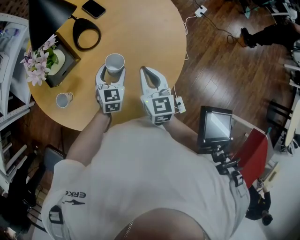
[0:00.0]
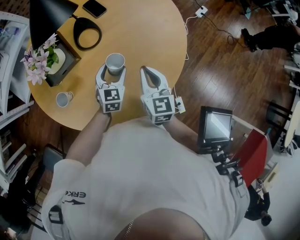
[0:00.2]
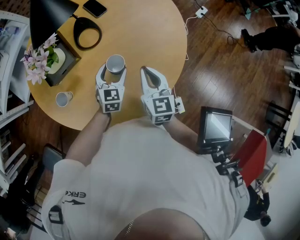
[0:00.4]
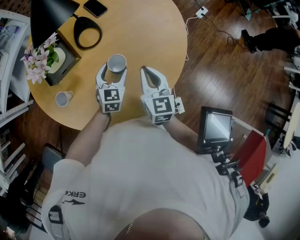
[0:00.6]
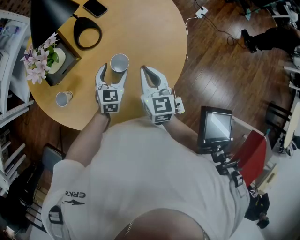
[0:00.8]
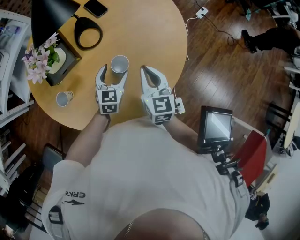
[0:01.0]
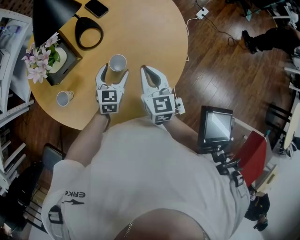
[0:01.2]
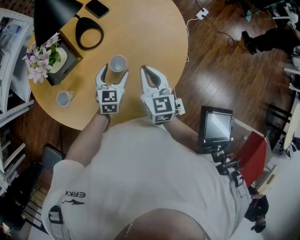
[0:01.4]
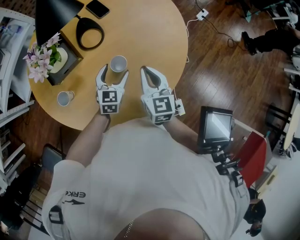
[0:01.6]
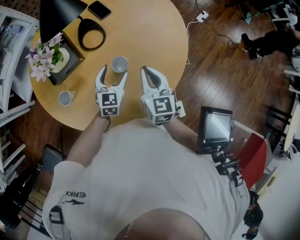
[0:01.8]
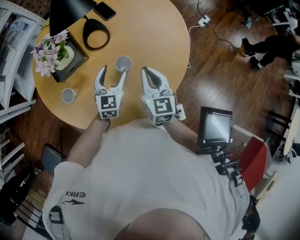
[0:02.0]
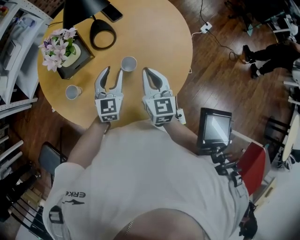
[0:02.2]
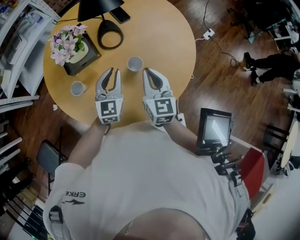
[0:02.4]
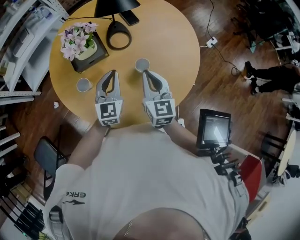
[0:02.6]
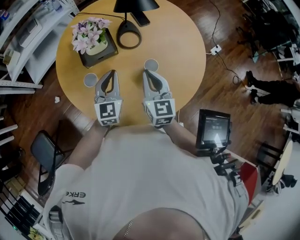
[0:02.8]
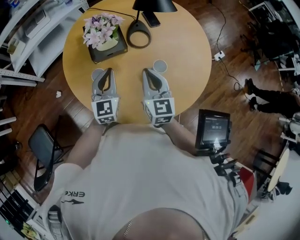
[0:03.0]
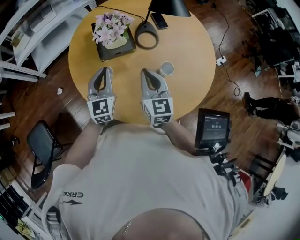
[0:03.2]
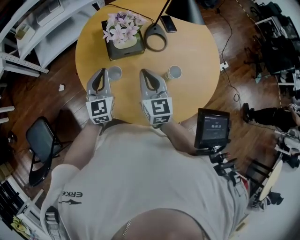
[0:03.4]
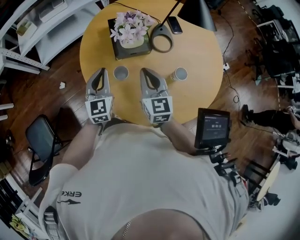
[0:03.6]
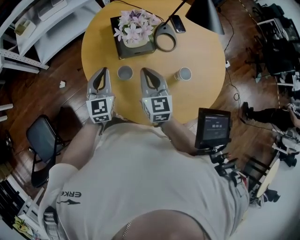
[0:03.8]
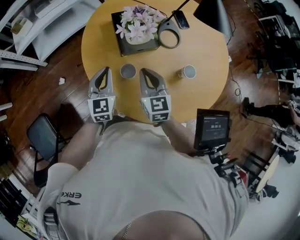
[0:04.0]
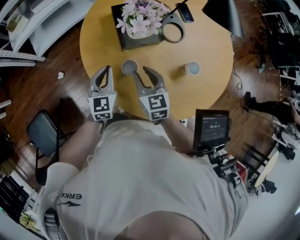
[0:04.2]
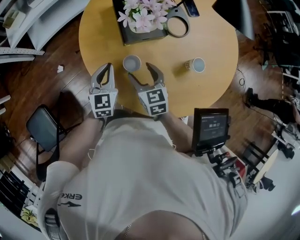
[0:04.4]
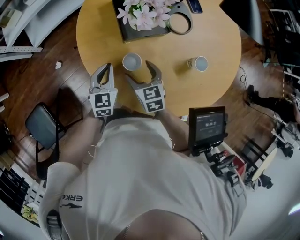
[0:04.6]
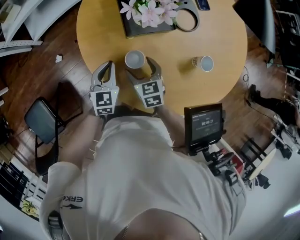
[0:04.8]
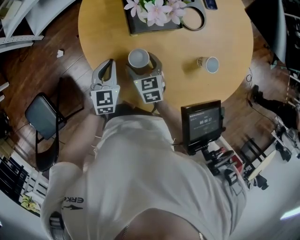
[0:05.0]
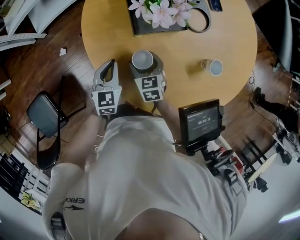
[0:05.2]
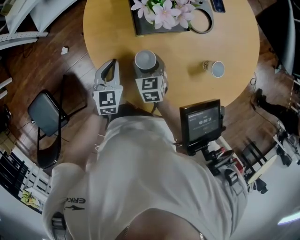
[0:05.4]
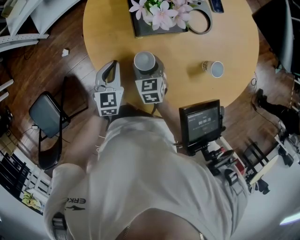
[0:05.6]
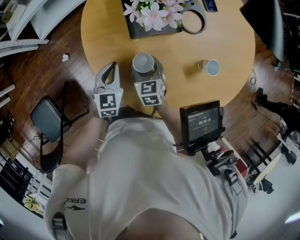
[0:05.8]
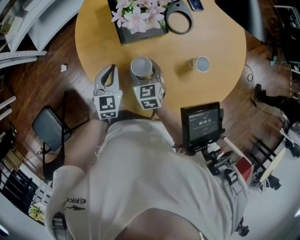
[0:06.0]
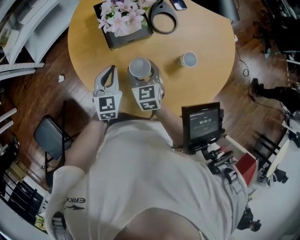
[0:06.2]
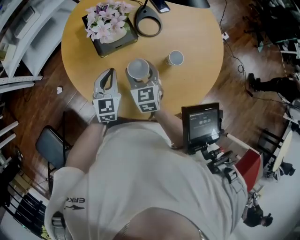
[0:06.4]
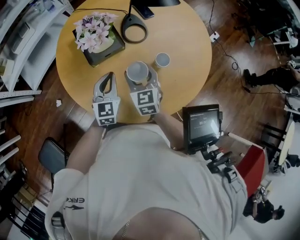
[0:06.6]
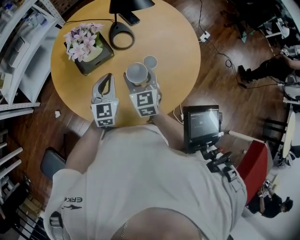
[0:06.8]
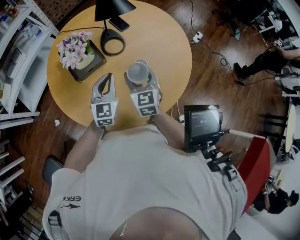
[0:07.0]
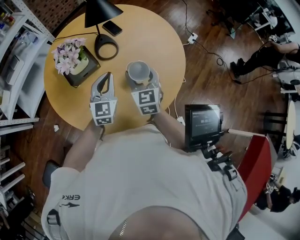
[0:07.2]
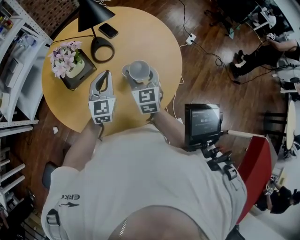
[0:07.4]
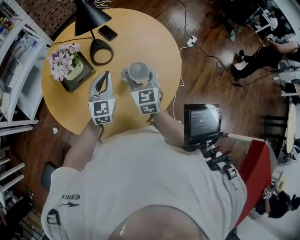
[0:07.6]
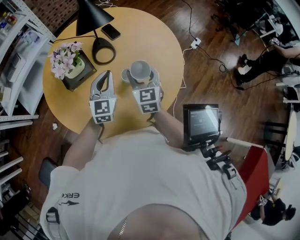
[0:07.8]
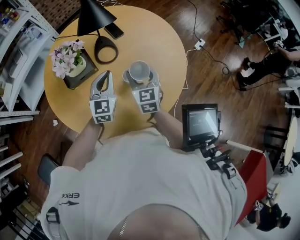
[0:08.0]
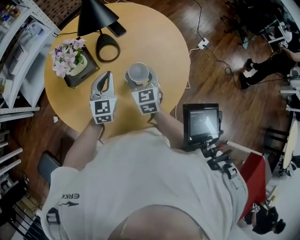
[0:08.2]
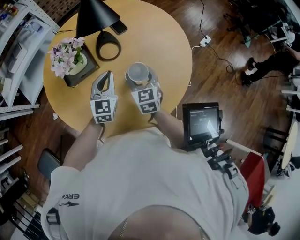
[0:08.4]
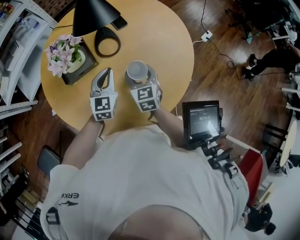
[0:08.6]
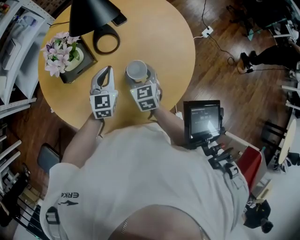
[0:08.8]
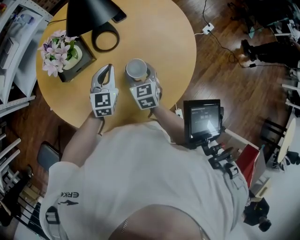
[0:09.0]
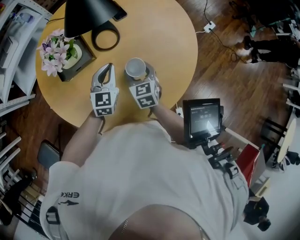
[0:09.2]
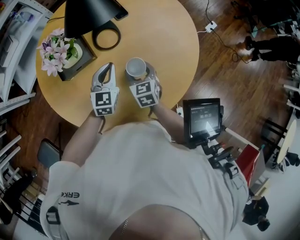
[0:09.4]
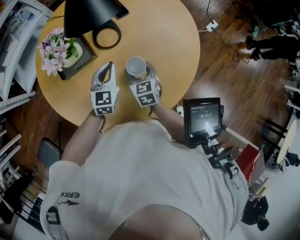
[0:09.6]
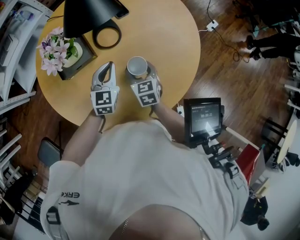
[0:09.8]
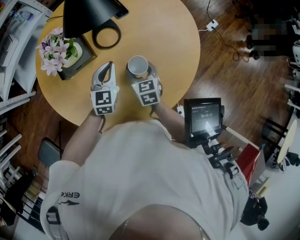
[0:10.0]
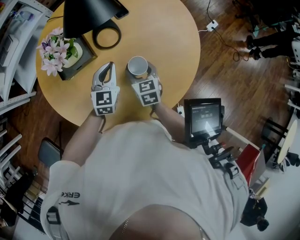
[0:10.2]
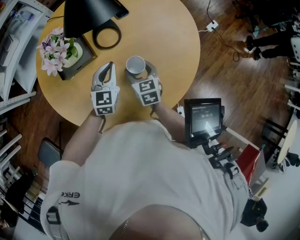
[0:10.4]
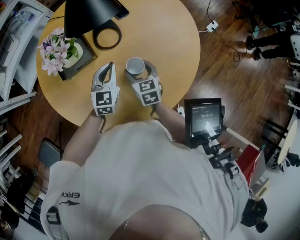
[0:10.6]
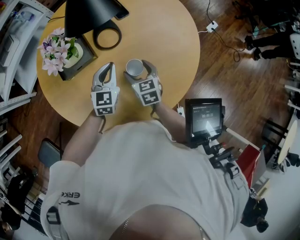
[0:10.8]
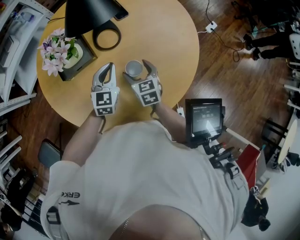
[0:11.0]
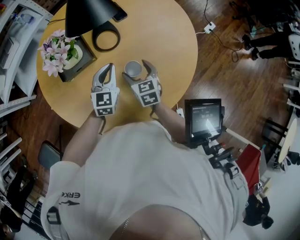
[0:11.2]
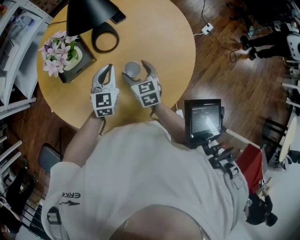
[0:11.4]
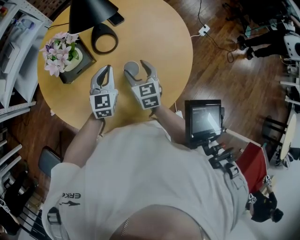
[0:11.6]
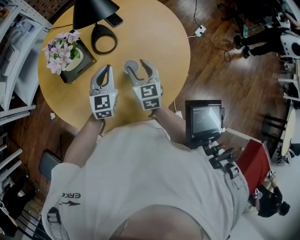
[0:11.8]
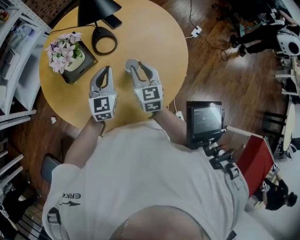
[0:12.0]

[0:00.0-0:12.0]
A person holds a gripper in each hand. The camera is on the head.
0.0 to 1.6 s: The grippers make only small movements.
1.6 to 3.0 s: Both grippers move to the left and upward, roughly 20 cm. The left gripper changes its angle by approximately 30 degrees, and closes its fingers.
3.0 to 4.4 s: The two grippers go some 20 cm to the left and downward. The right gripper swivels roughly 30 degrees, and opens its fingers.
4.4 to 6.0 s: The right gripper is displaced downward by some 5 cm.
6.0 to 7.6 s: Both grippers travel together to the right and upward, some 35 cm. The right gripper rotates approximately 30 degrees. The left gripper turns by some 30 degrees.
7.6 to 9.0 s: The two grippers go approximately 10 cm downward. The right gripper turns by about 20 degrees.
9.0 to 10.4 s: The grippers stay close to where they were, moving slightly.
10.4 to 12.0 s: The left gripper travels upward by approximately 5 cm. Meanwhile the right gripper goes about 10 cm upward, turns by approximately 20 degrees, and closes its fingers.

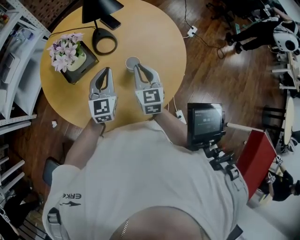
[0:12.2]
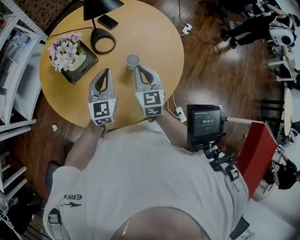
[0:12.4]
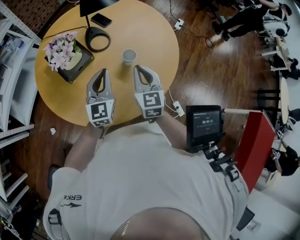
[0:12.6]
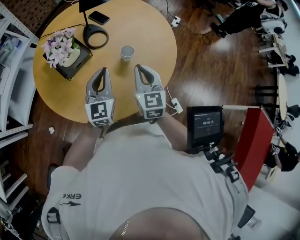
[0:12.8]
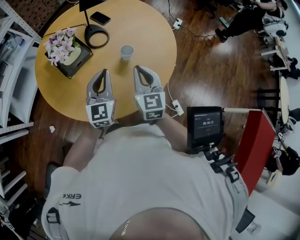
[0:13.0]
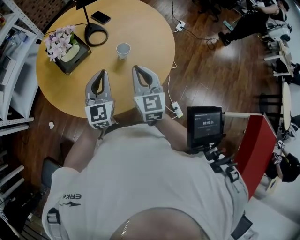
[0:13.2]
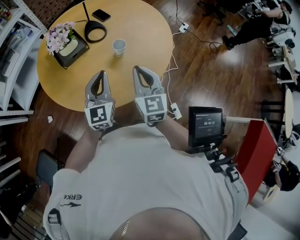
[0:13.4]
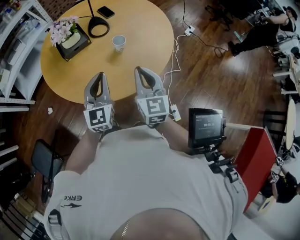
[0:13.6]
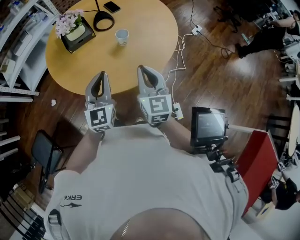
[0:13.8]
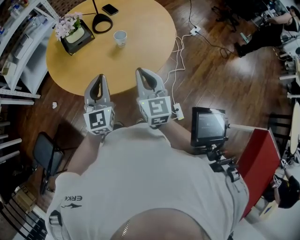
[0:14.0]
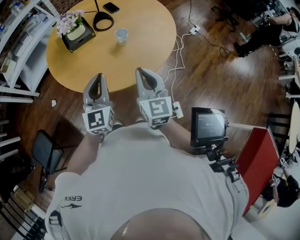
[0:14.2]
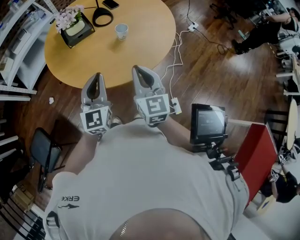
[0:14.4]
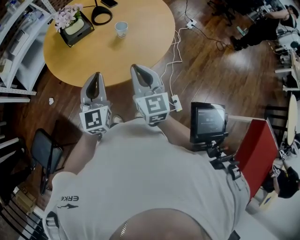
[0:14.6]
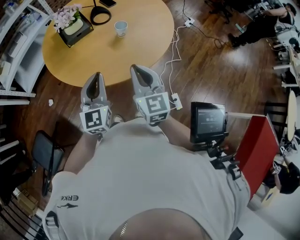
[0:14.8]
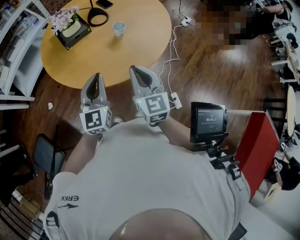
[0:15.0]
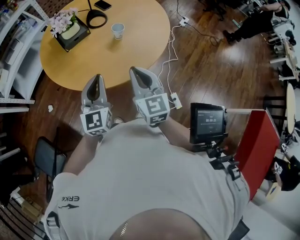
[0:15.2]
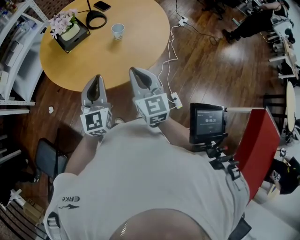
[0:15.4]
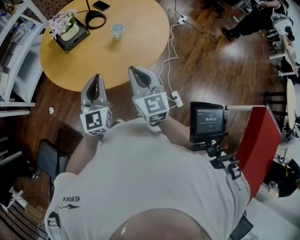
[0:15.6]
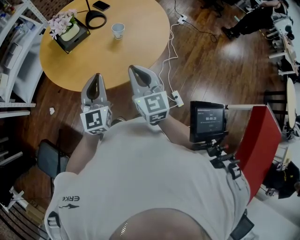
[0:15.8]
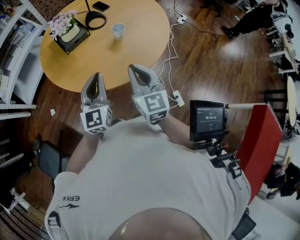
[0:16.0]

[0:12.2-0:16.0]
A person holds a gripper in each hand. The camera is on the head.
12.2 to 13.4 s: The right gripper is displaced backward and upward by some 15 cm. The left gripper heads backward, covering approximately 15 cm.
13.4 to 14.8 s: Both grippers travel together backward, about 15 cm.
14.8 to 16.0 s: The grippers make only small movements.

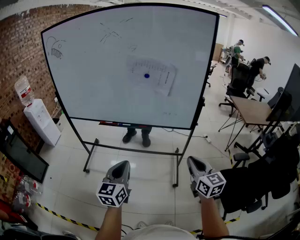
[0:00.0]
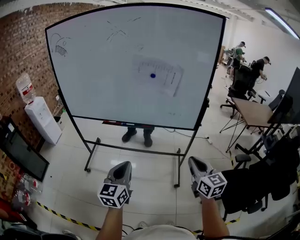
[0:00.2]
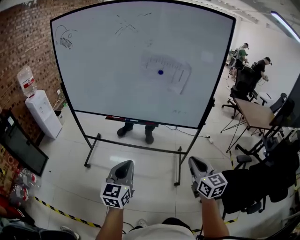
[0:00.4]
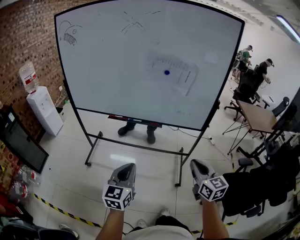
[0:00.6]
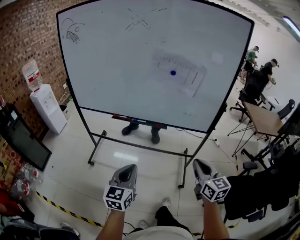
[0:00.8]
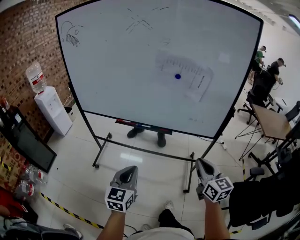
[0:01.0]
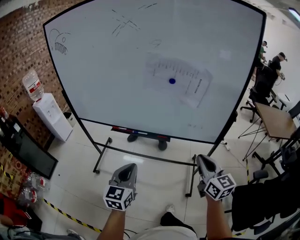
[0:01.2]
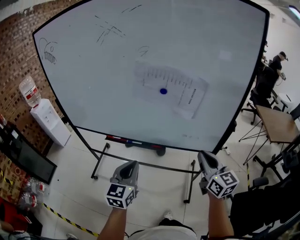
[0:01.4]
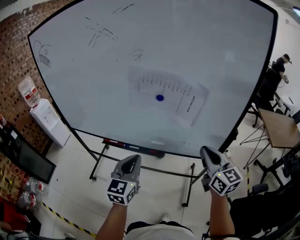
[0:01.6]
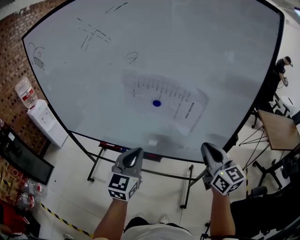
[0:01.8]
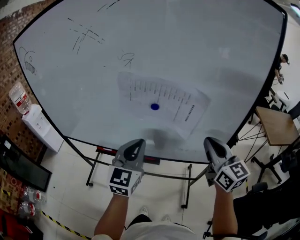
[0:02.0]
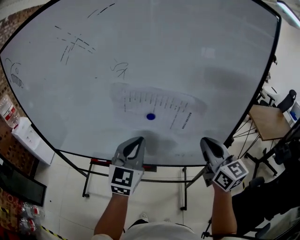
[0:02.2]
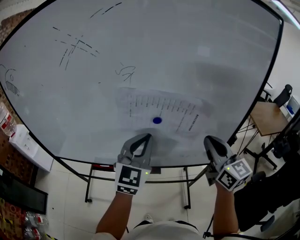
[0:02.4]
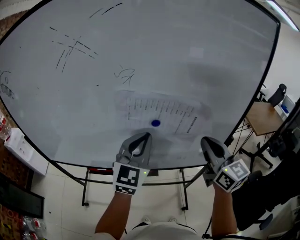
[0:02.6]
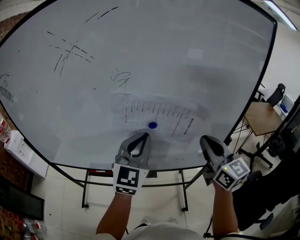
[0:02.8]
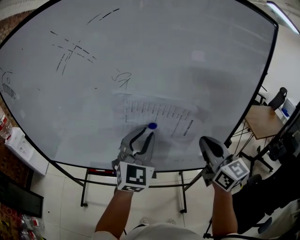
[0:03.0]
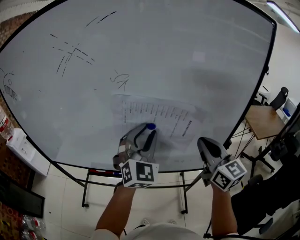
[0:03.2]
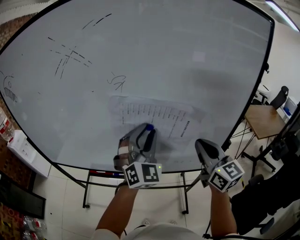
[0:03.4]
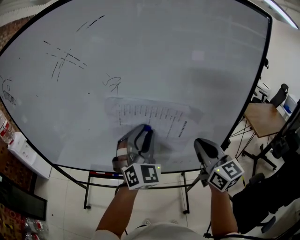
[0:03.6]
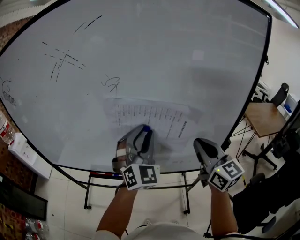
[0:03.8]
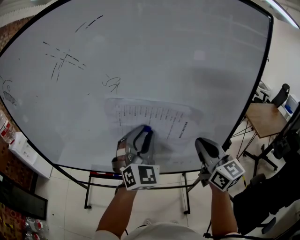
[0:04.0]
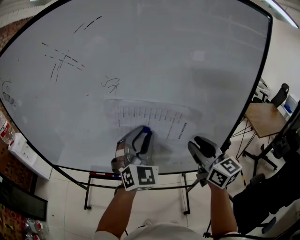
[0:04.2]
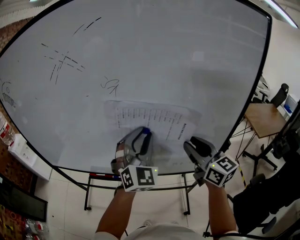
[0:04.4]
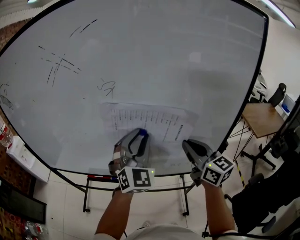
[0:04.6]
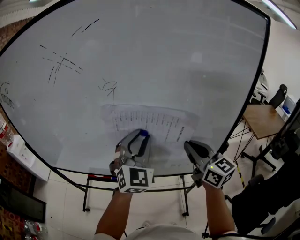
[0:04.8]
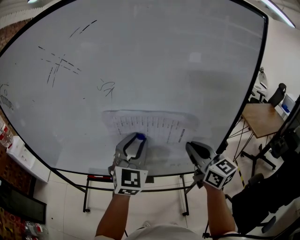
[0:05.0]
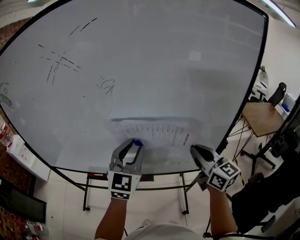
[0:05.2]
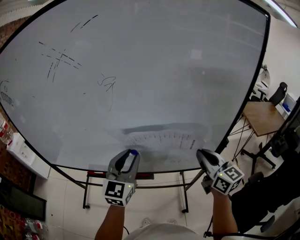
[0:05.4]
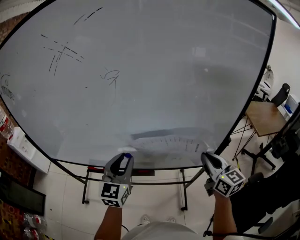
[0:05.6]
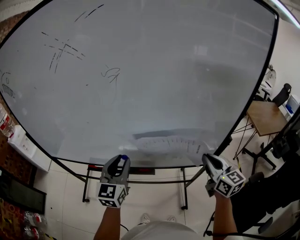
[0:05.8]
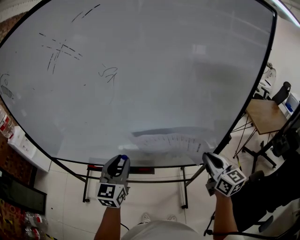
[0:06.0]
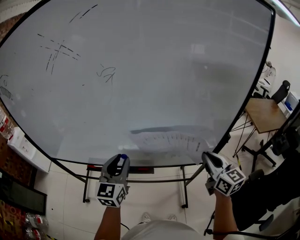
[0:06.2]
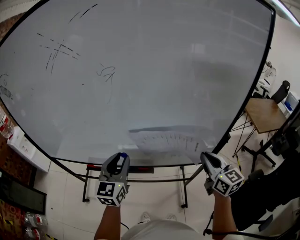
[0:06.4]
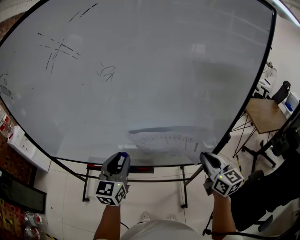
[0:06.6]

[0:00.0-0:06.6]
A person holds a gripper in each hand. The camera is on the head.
0.0 to 1.6 s: The grippers both shift forward by approximately 30 cm.
1.6 to 3.2 s: The left gripper is displaced forward and upward by some 25 cm, rotates approximately 40 degrees, and opens up, while the right gripper travels upward and forward by some 10 cm.
3.2 to 5.0 s: The right gripper opens, then closes once more.
5.0 to 6.6 s: The left gripper travels downward and to the left by some 15 cm, and turns by approximately 30 degrees. Meanwhile the right gripper shifts approximately 10 cm downward and to the right.

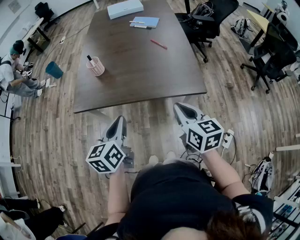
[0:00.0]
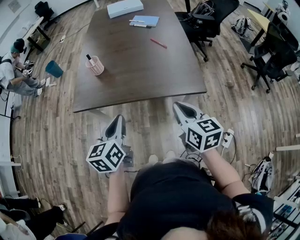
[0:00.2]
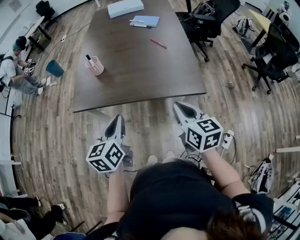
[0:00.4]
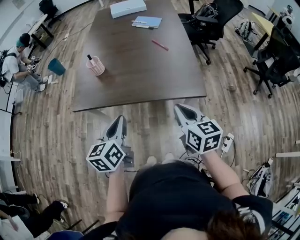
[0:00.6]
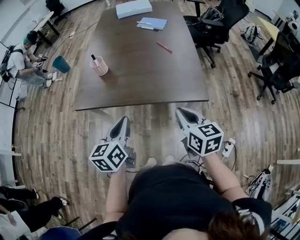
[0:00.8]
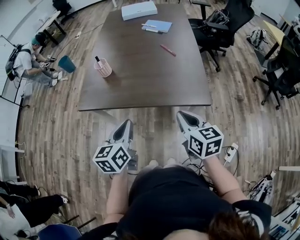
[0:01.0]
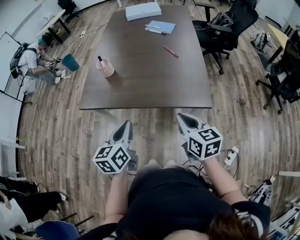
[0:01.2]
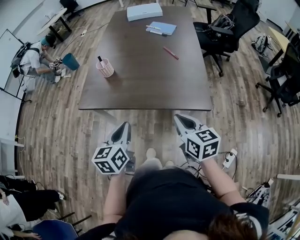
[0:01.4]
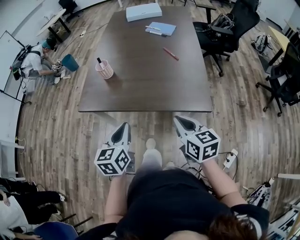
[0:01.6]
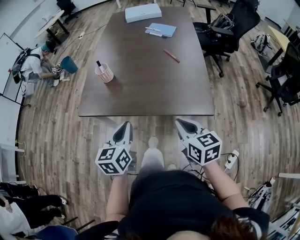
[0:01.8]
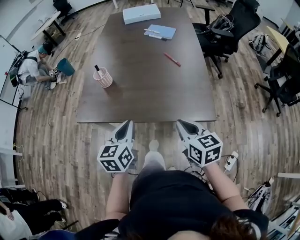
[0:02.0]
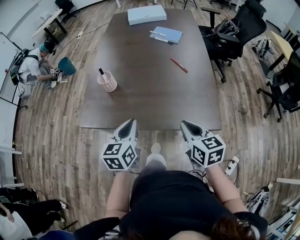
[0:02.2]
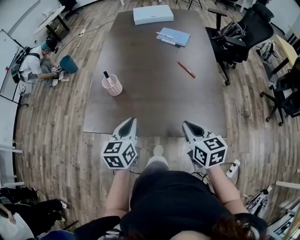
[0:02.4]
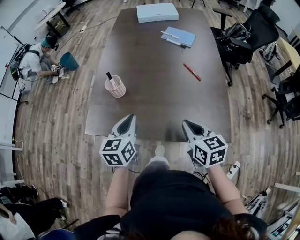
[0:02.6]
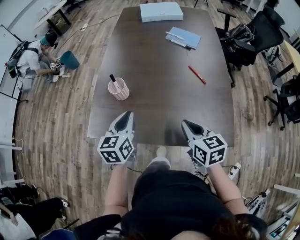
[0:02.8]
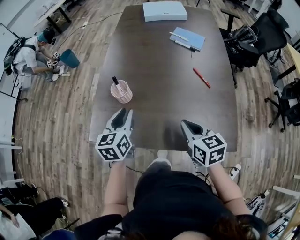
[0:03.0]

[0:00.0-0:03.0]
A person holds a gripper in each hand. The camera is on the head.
0.0 to 1.6 s: The left gripper changes place by roughly 5 cm; the right gripper moves about 5 cm.
1.6 to 3.0 s: The two grippers go approximately 25 cm forward. The left gripper opens up.
